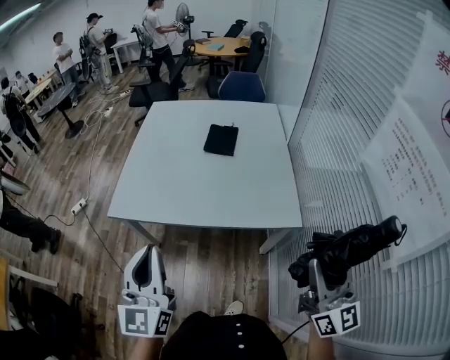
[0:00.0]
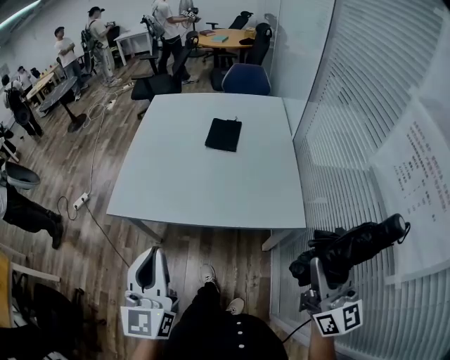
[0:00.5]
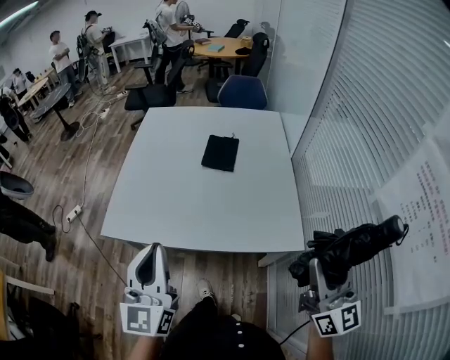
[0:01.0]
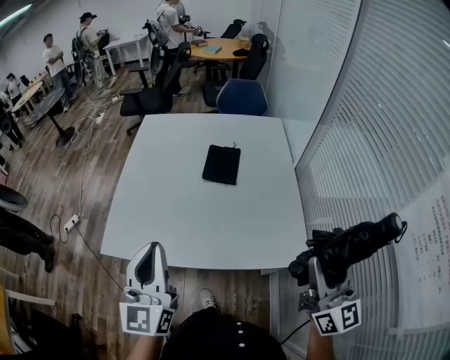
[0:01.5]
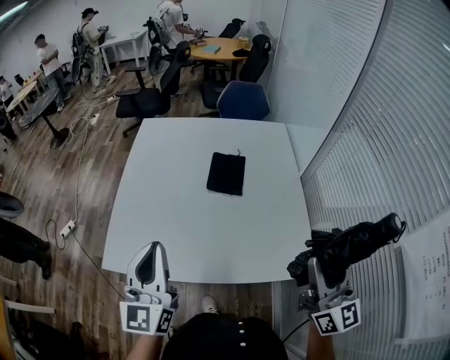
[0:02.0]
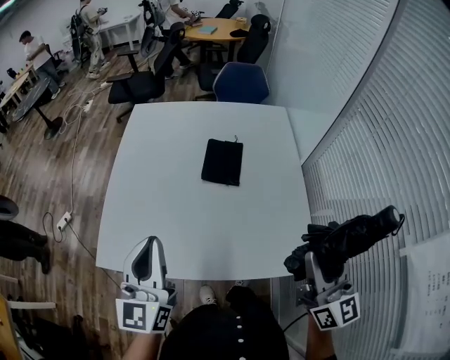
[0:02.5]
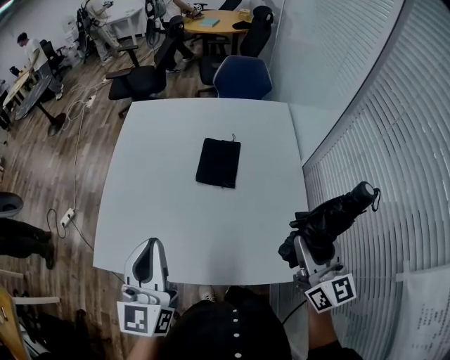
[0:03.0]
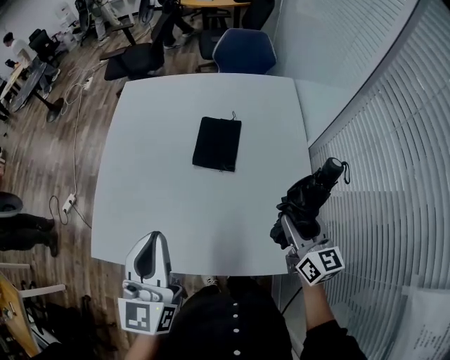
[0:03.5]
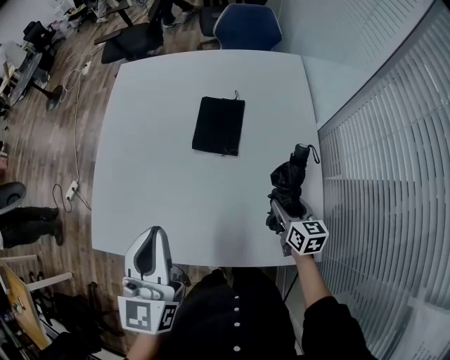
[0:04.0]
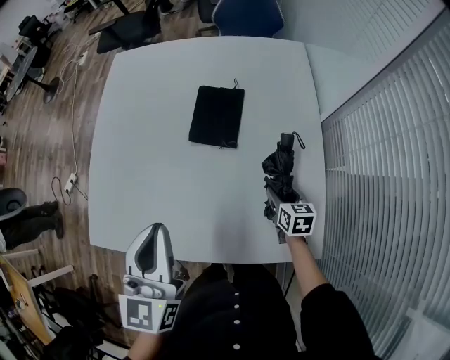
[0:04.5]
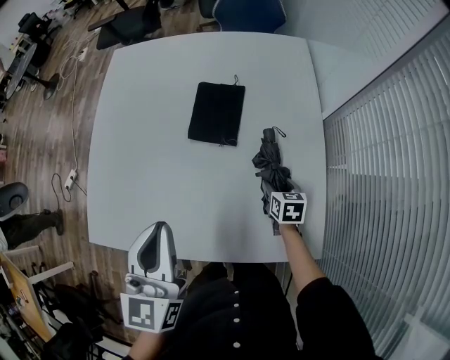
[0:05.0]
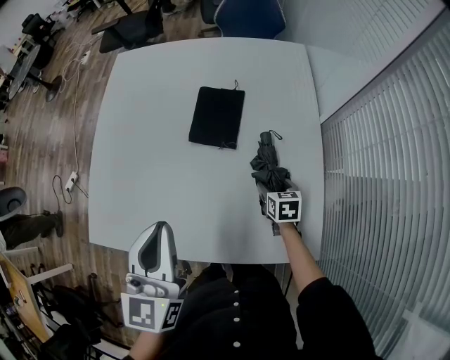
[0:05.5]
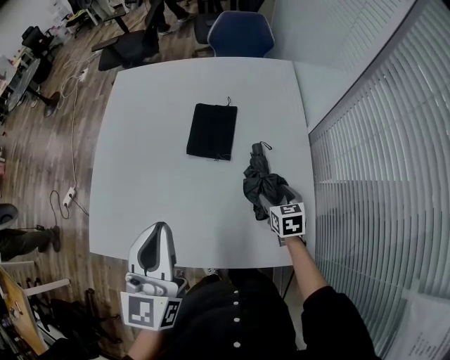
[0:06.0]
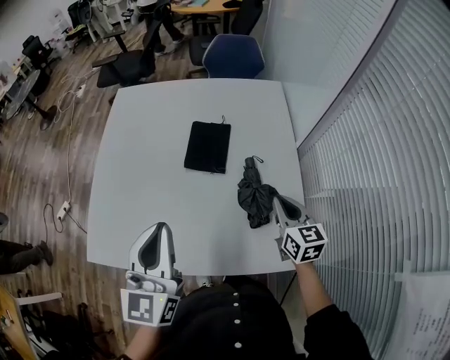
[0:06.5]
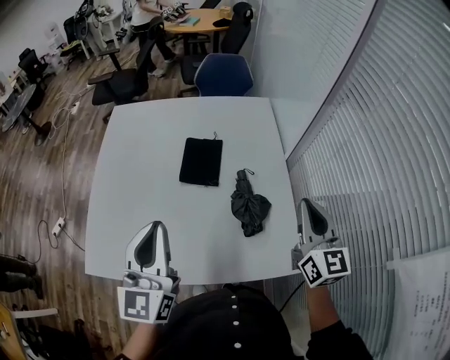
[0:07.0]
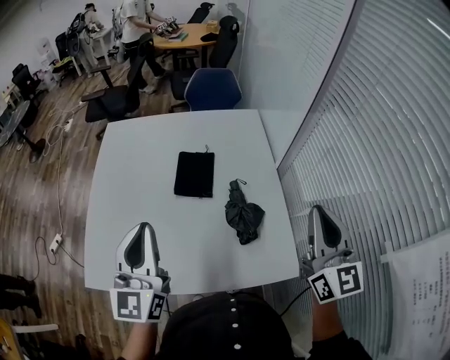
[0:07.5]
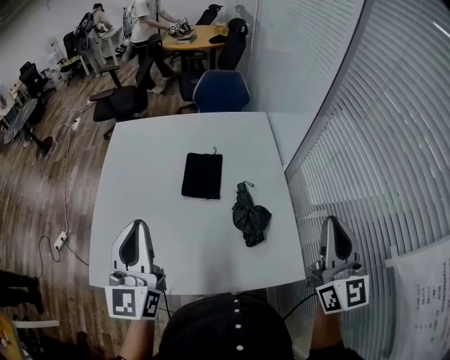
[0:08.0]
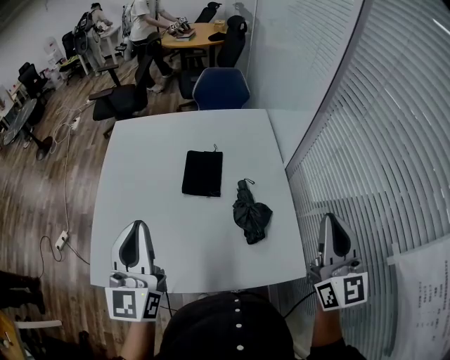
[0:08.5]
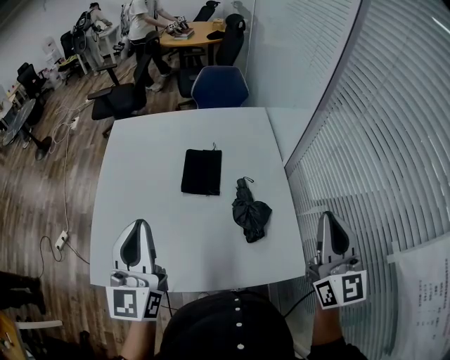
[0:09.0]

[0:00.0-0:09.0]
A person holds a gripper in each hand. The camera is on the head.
0:00.0 to 0:02.0: Both grippers move forward, approximately 25 cm.
0:02.0 to 0:04.5: The left gripper travels forward, to the right and downward by some 20 cm. The right gripper is displaced downward and forward by about 50 cm, and tilts its fingers approximately 50 degrees downward.
0:04.5 to 0:07.0: The right gripper heads upward, covering roughly 35 cm, tips its fingers upward by about 40 degrees, and closes, while the left gripper is displaced upward by about 5 cm.
0:07.0 to 0:09.0: The right gripper travels upward and backward by about 10 cm.

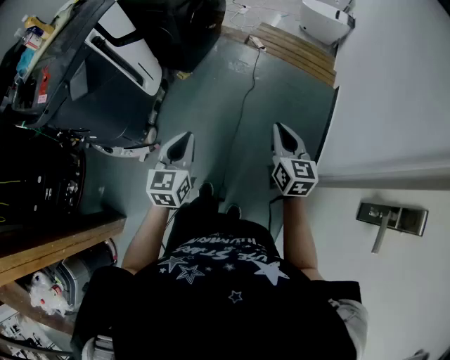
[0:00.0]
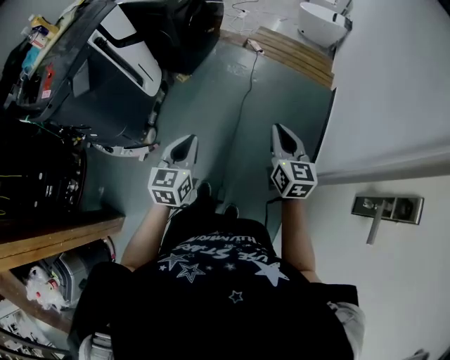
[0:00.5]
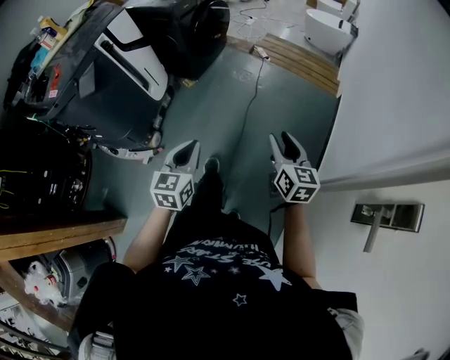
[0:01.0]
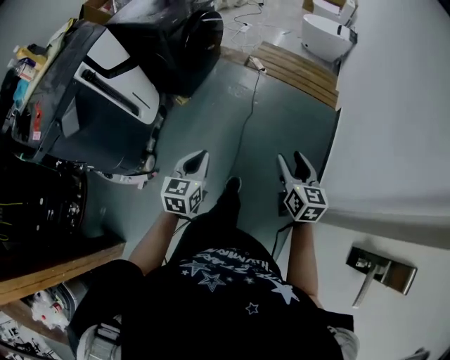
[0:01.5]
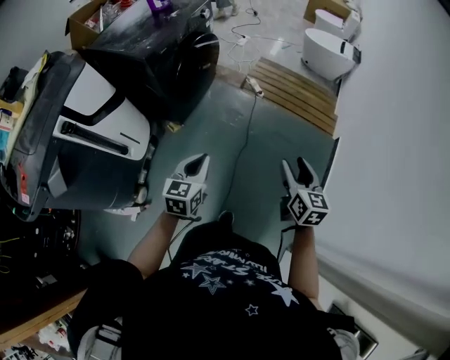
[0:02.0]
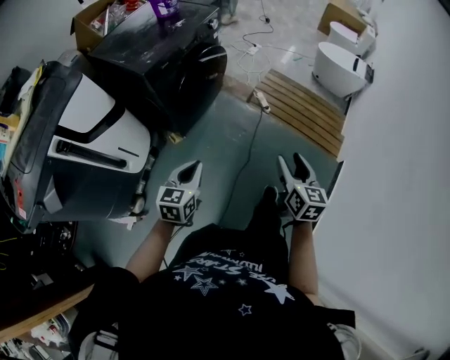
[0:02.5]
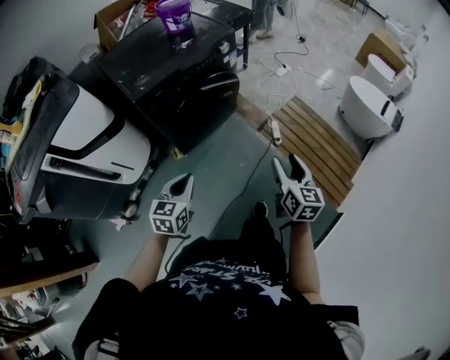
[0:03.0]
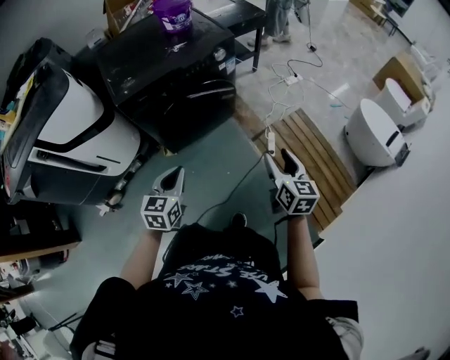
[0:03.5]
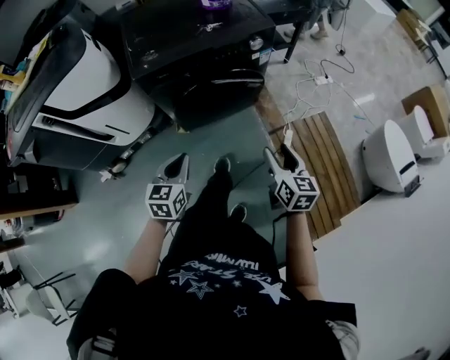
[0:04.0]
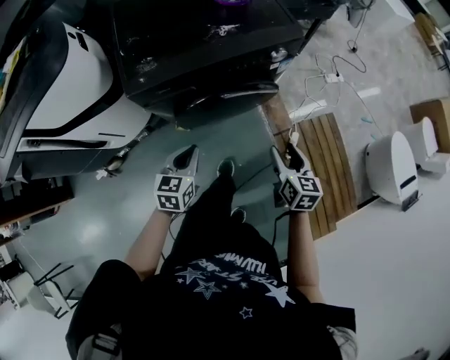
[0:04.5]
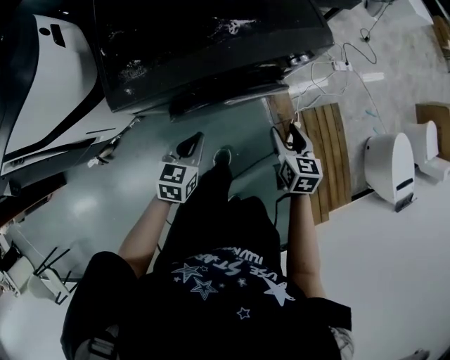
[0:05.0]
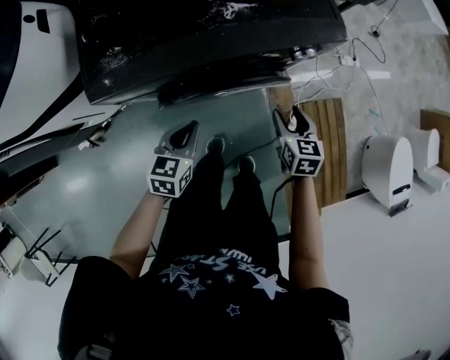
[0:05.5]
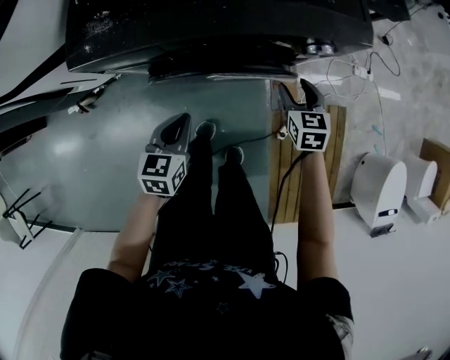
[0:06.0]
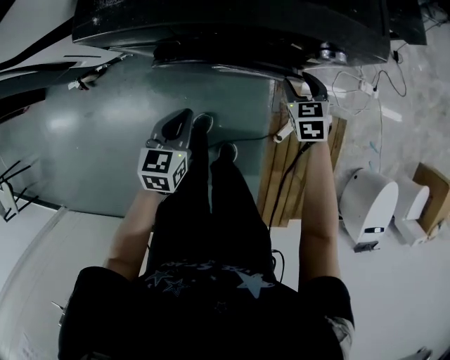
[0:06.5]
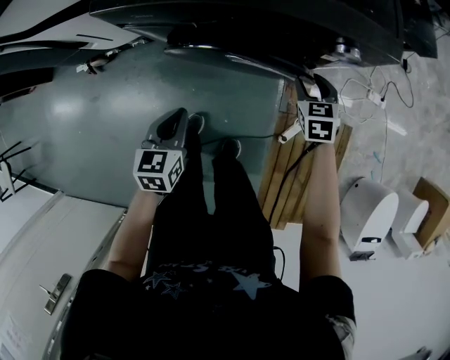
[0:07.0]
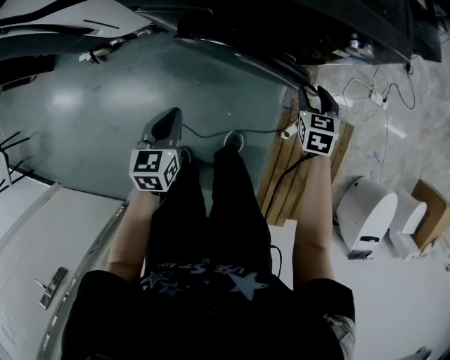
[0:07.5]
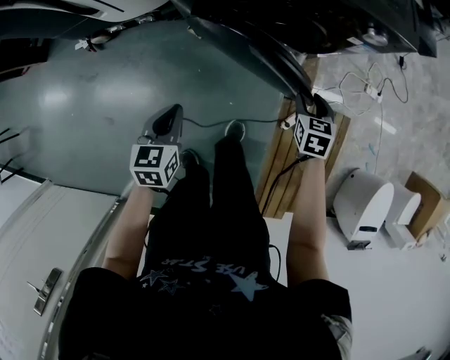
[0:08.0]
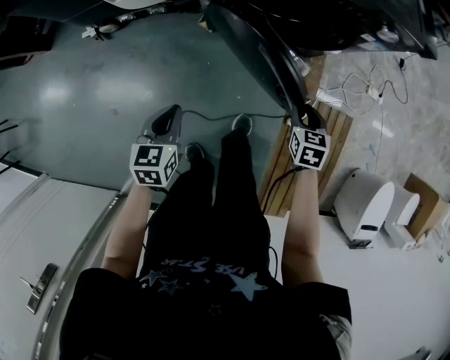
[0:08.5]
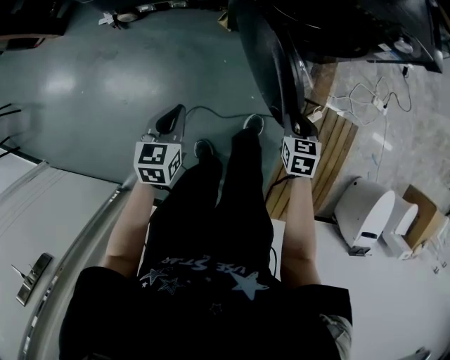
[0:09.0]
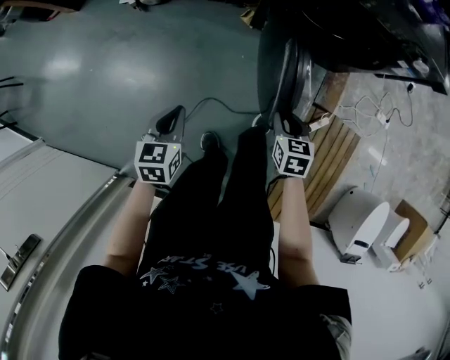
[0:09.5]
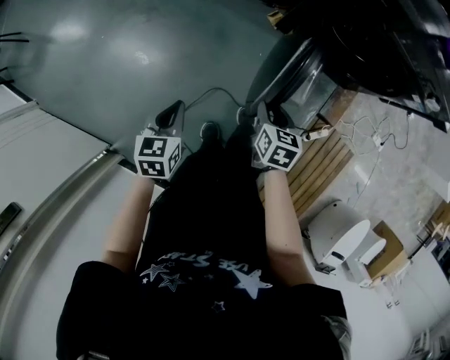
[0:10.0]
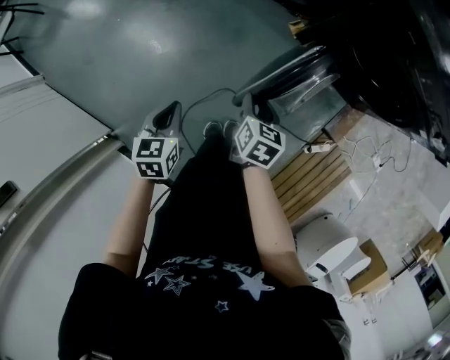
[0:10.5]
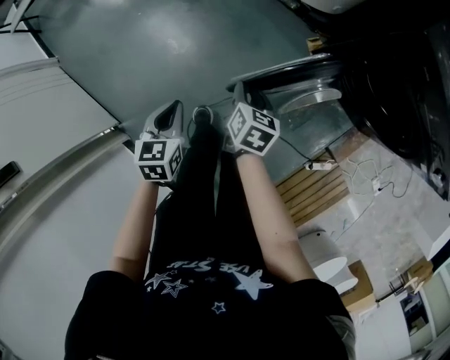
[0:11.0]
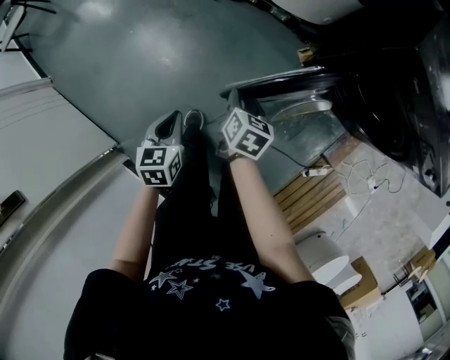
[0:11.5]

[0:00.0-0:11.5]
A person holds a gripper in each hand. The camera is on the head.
0:00.0 to 0:02.0: The grippers both shift forward by approximately 35 cm. The right gripper opens up.
0:02.0 to 0:04.0: The right gripper moves approximately 60 cm, and changes its angle by about 50 degrees. Meanwhile the left gripper ends up roughly 40 cm from where it was, and turns by about 50 degrees.
0:04.0 to 0:06.0: The right gripper moves forward and downward, approximately 40 cm, and changes its angle by about 40 degrees. Meanwhile the left gripper goes approximately 25 cm forward and downward.
0:06.0 to 0:07.5: The left gripper moves backward and to the left, about 10 cm. The right gripper changes place by roughly 5 cm.
0:07.5 to 0:09.5: The right gripper is displaced to the left and backward by approximately 40 cm, and closes up, while the left gripper is displaced backward and to the left by about 35 cm.
0:09.5 to 0:11.5: The right gripper moves approximately 35 cm. The left gripper shifts by roughly 20 cm, and rotates some 30 degrees.

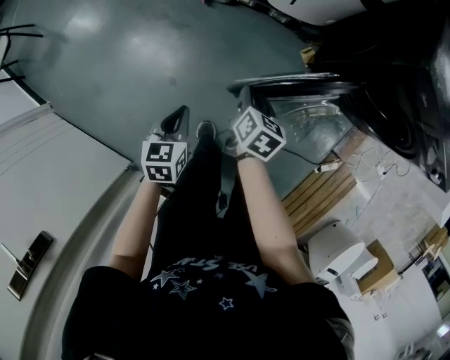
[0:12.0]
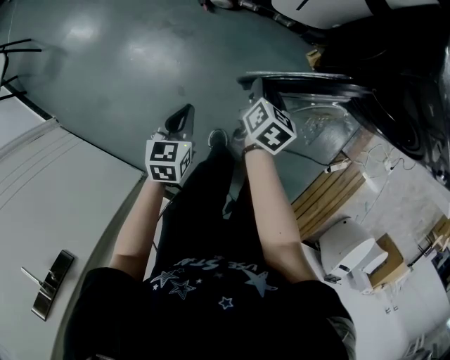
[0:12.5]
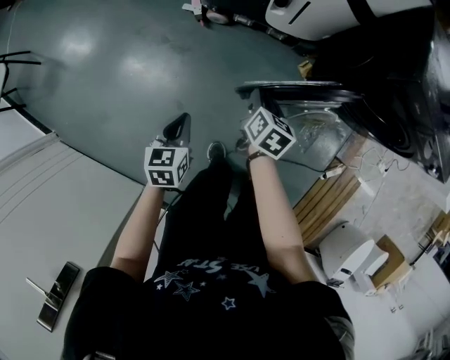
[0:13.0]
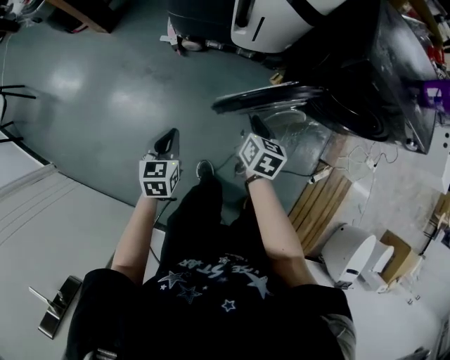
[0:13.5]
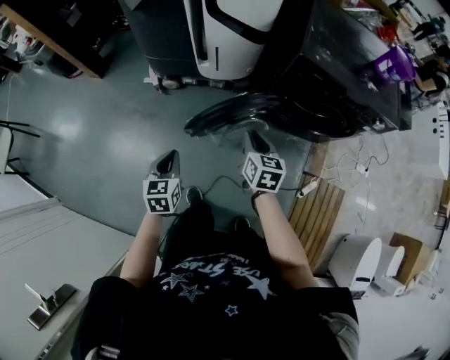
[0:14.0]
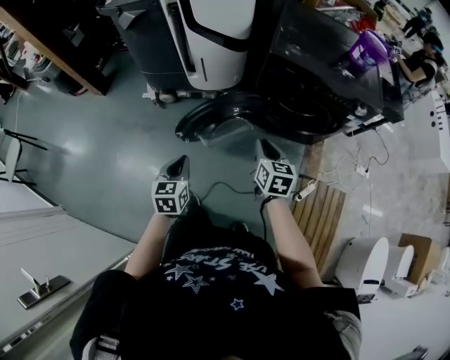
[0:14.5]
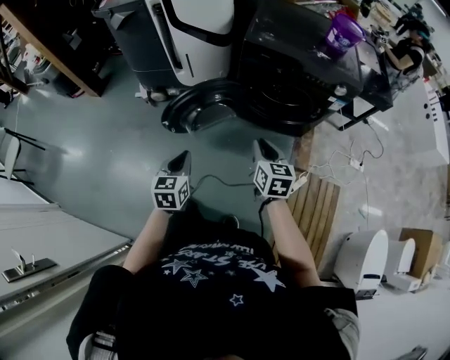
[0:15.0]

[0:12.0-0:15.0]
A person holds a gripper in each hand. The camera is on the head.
0:12.0 to 0:13.5: The left gripper is displaced forward and upward by roughly 10 cm. The right gripper travels upward by about 10 cm.
0:13.5 to 0:15.0: The grippers both shift to the right, backward and upward by about 35 cm.

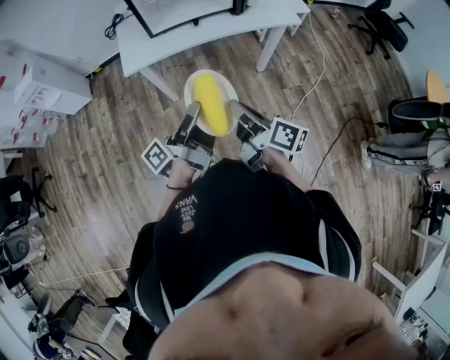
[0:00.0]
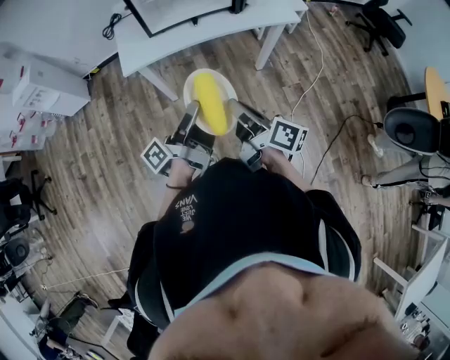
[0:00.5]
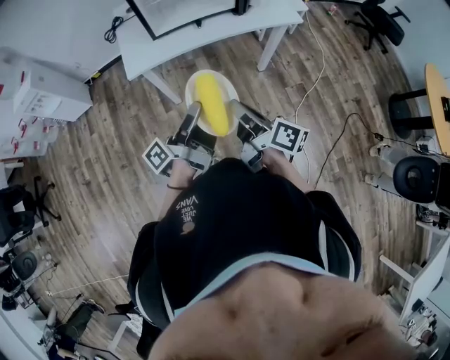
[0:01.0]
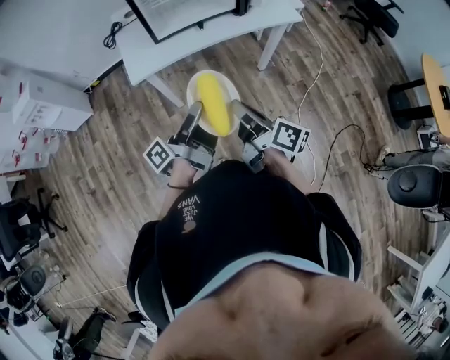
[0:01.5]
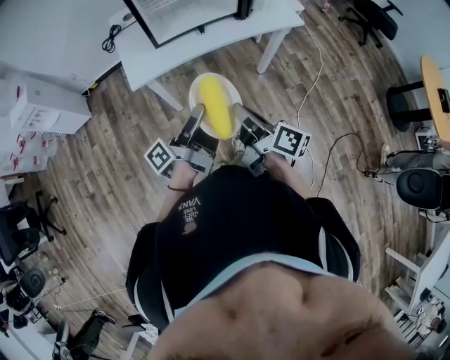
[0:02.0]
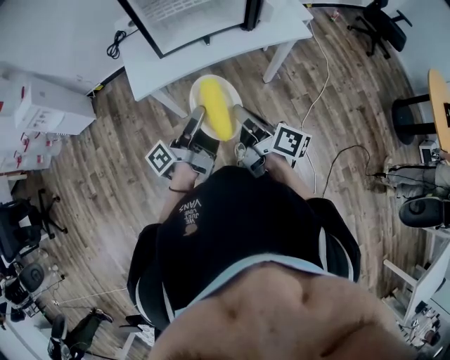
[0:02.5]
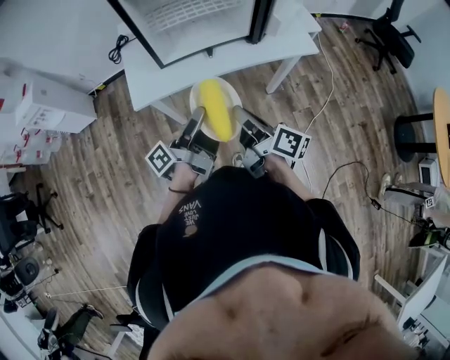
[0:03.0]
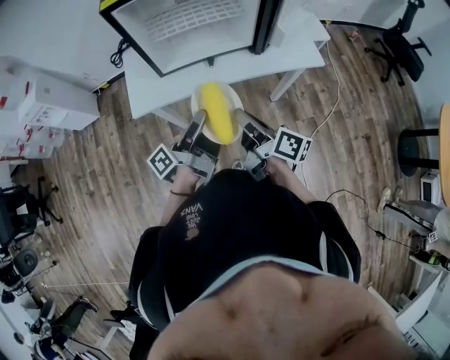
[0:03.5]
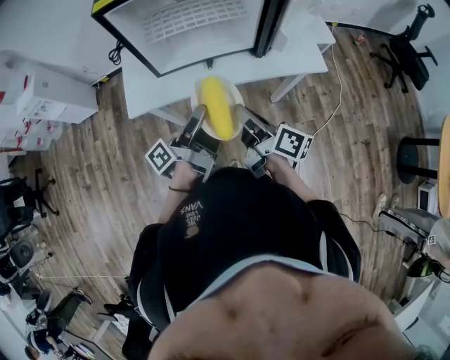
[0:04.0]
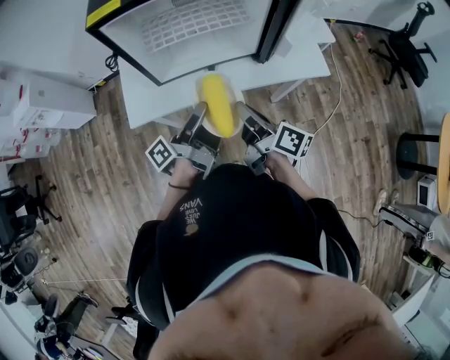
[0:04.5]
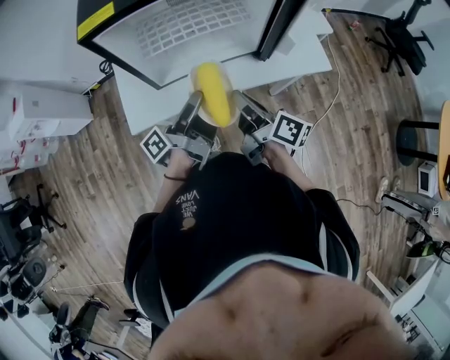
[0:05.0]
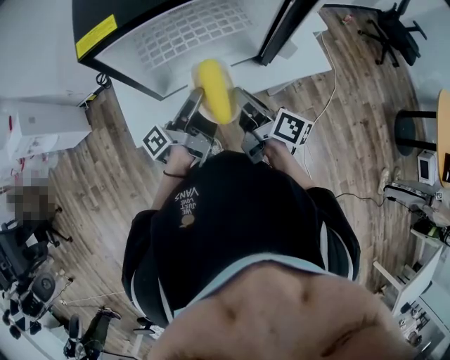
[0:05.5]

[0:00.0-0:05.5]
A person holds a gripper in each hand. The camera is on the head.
0:00.0 to 0:02.0: The right gripper ends up some 5 cm from where it was.
0:02.0 to 0:03.5: The right gripper moves roughly 20 cm.
0:03.5 to 0:05.5: The right gripper shifts by roughly 15 cm.
